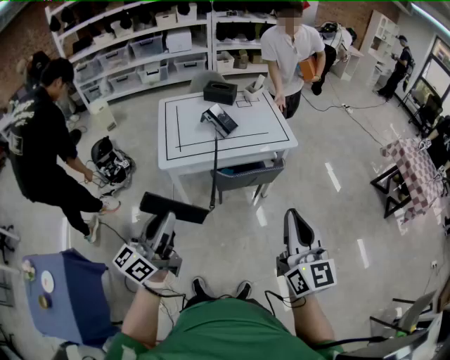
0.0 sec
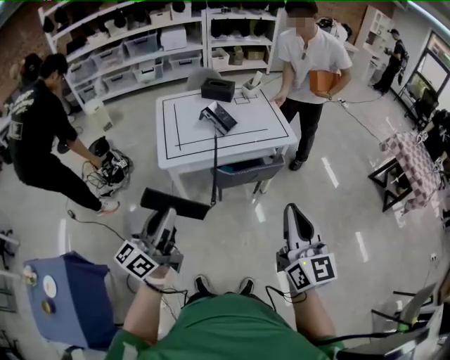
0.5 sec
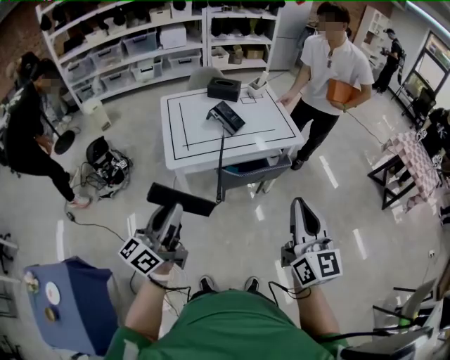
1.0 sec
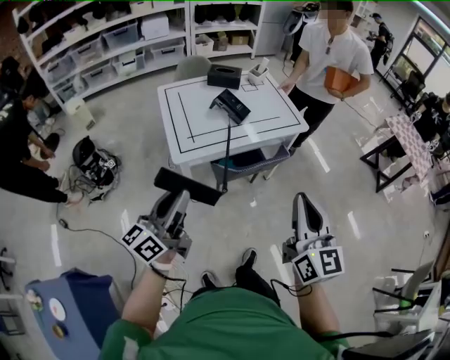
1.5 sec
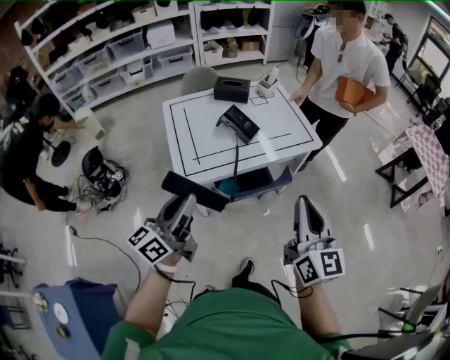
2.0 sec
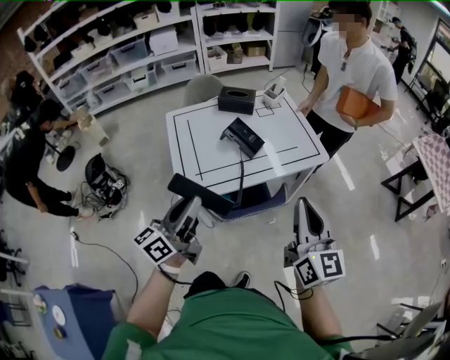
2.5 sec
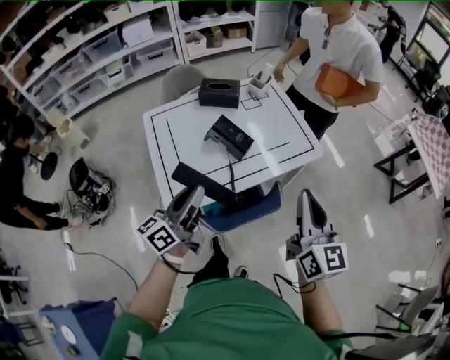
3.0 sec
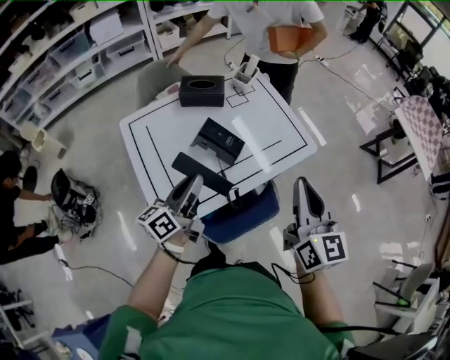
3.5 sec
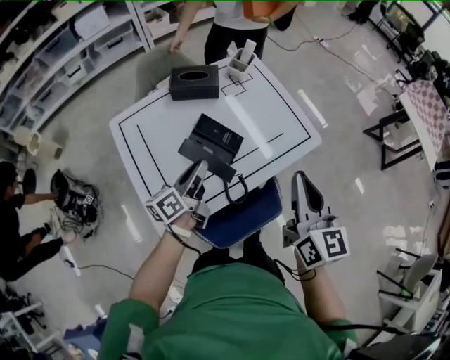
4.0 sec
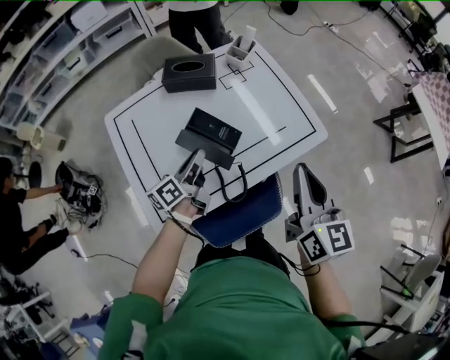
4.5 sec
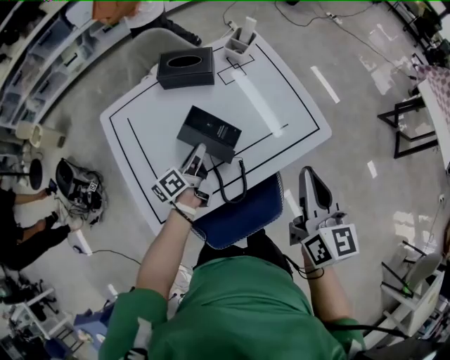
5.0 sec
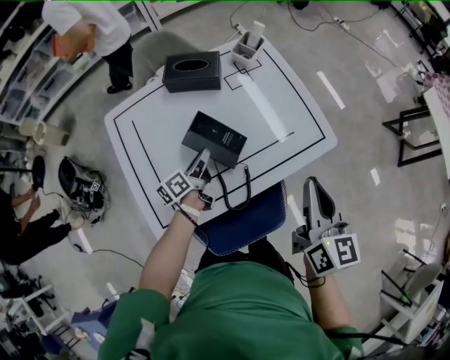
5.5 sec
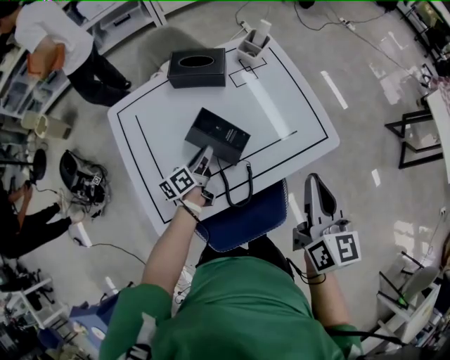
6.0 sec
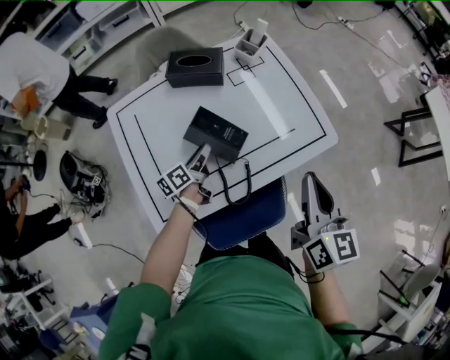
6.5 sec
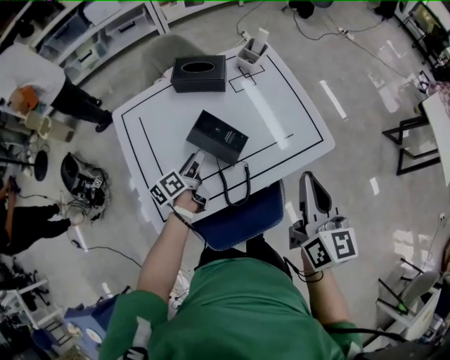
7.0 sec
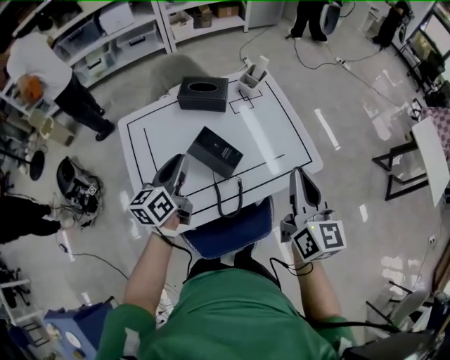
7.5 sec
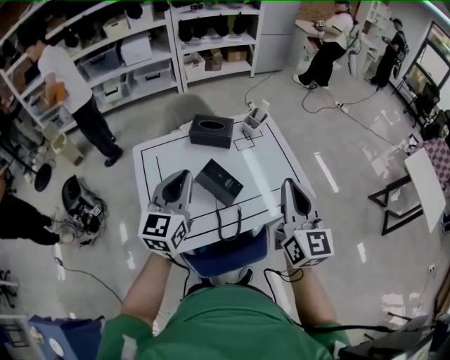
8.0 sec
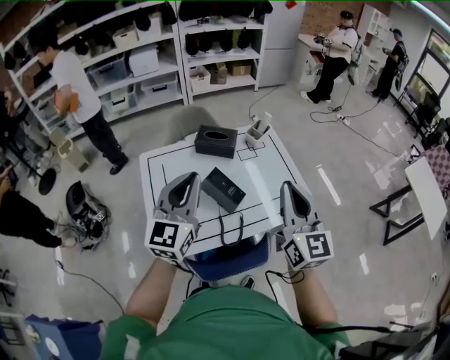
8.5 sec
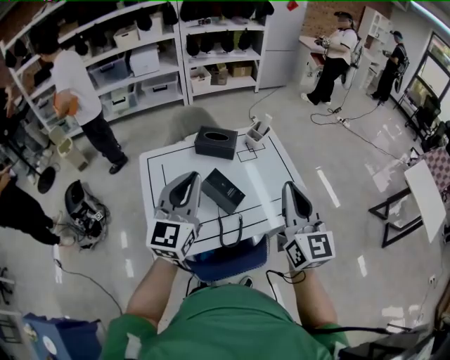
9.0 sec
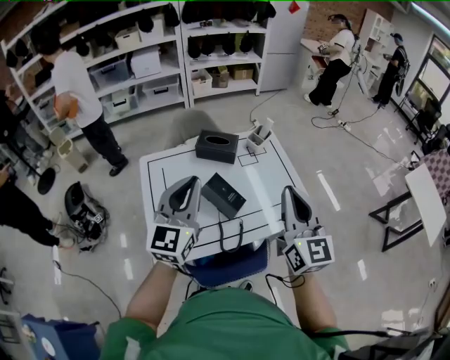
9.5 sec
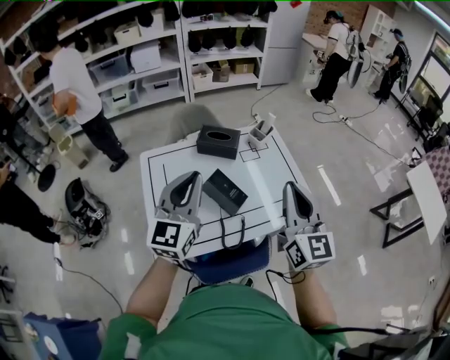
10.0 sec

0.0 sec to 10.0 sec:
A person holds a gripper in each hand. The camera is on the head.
0.0 sec to 2.0 sec: The right gripper moves to the left, forward and downward, roughly 25 cm. The left gripper is displaced forward, to the left and downward by roughly 30 cm.
2.0 sec to 4.0 sec: The left gripper heads forward and downward, covering approximately 50 cm, and swivels roughly 30 degrees. Meanwhile the right gripper moves forward, about 30 cm.
4.0 sec to 6.0 sec: The right gripper heads forward and downward, covering roughly 10 cm. Meanwhile the left gripper shifts about 15 cm downward and forward.
6.0 sec to 8.0 sec: The right gripper moves upward, roughly 15 cm, and rotates approximately 20 degrees. The left gripper heads upward, covering approximately 35 cm, rotates around the line of its fingers by some 60 degrees, clockwise from behind, and opens, then closes again.
8.0 sec to 10.0 sec: The left gripper shifts roughly 5 cm upward.
